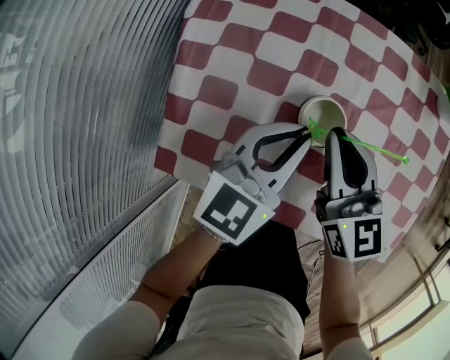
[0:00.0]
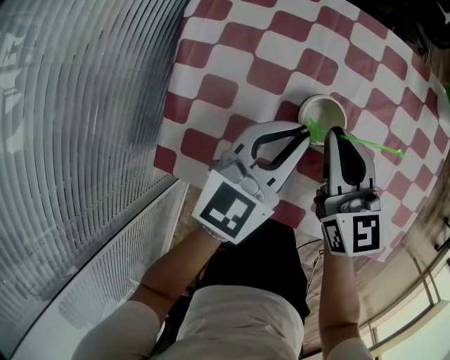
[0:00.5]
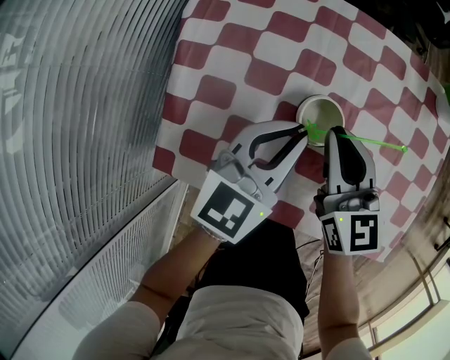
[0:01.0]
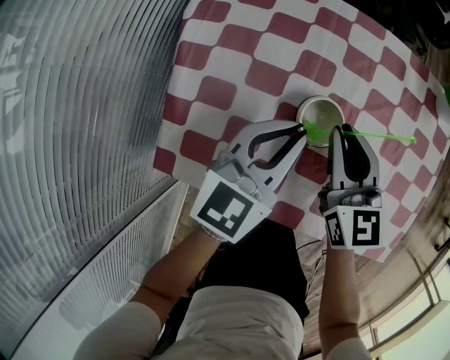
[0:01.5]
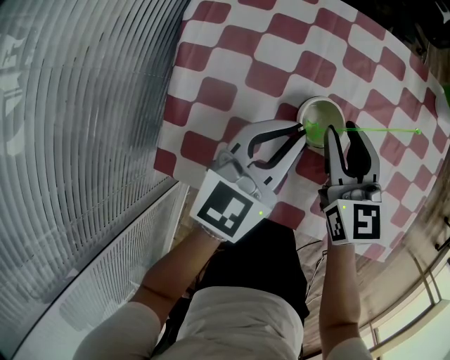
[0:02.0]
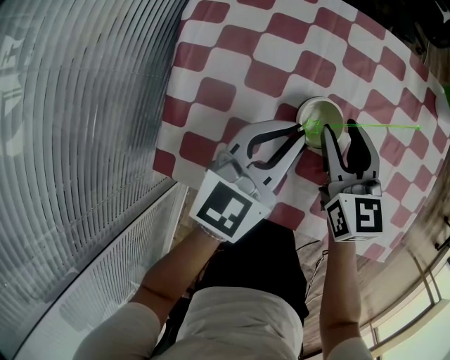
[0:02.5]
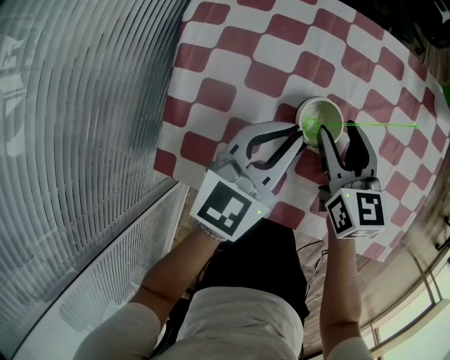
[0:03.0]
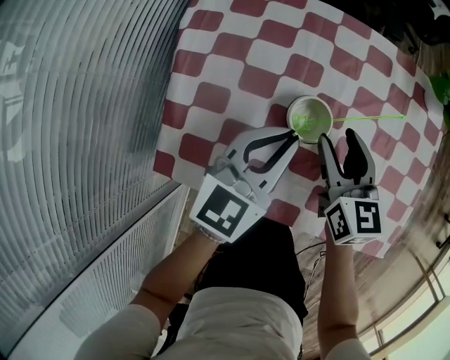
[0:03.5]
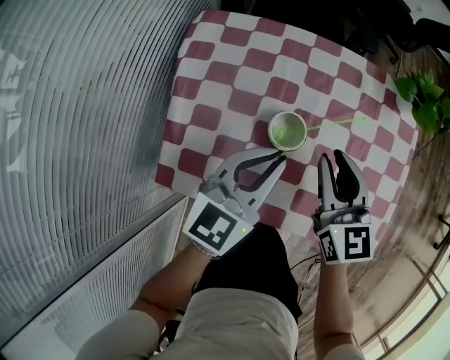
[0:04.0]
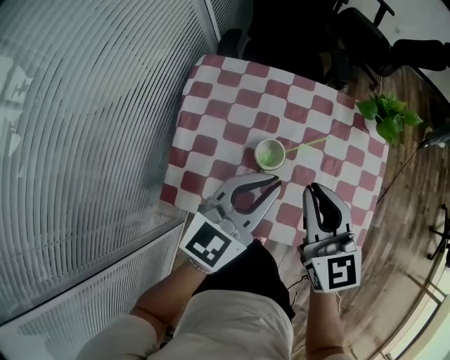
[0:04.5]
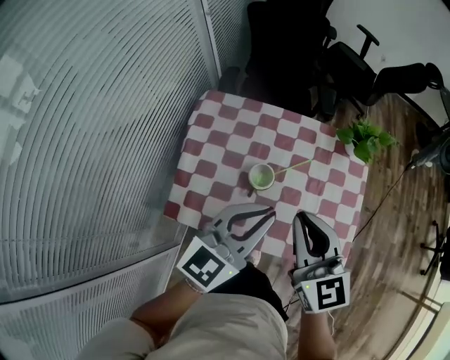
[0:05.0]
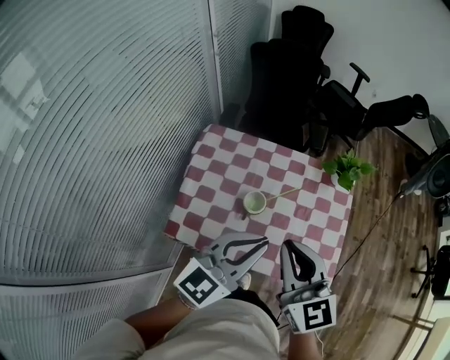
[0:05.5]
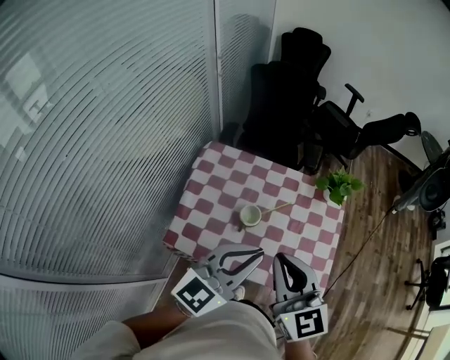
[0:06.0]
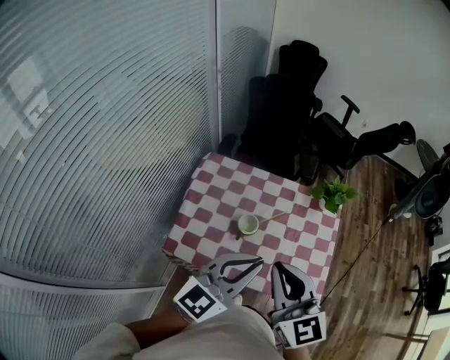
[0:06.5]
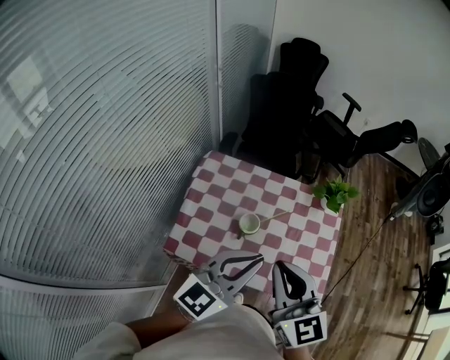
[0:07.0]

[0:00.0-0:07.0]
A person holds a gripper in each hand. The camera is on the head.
0:00.0 to 0:02.0: The right gripper opens up.
0:02.0 to 0:03.5: The right gripper opens up.
0:03.5 to 0:05.0: The left gripper is displaced upward by some 25 cm. Meanwhile the right gripper goes approximately 30 cm upward and backward, changes its angle by approximately 20 degrees, and closes up.
0:05.0 to 0:07.0: The two grippers go approximately 15 cm upward and backward.

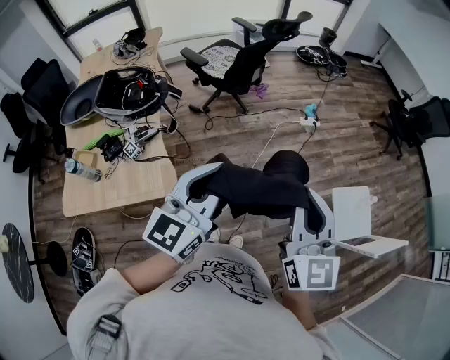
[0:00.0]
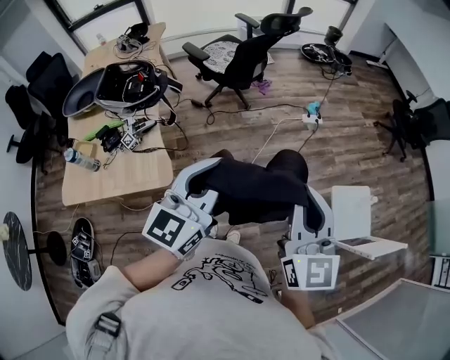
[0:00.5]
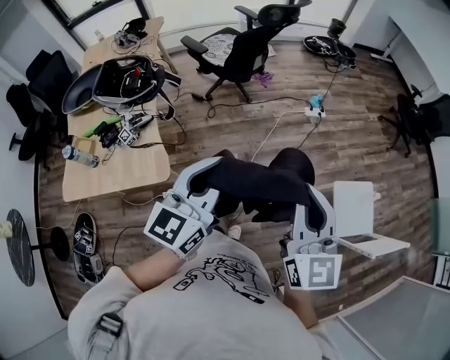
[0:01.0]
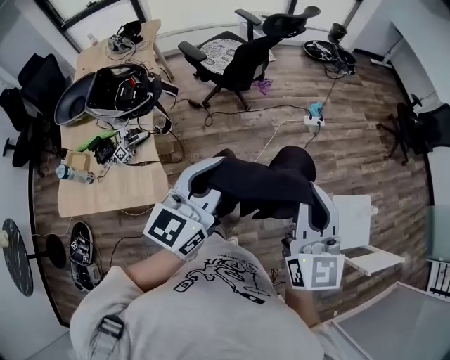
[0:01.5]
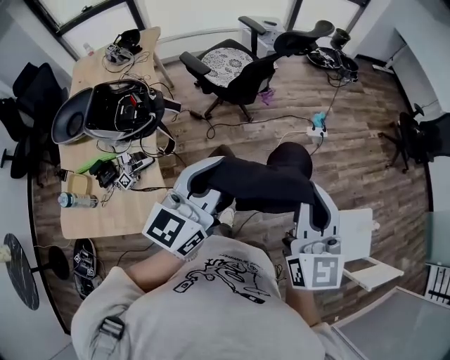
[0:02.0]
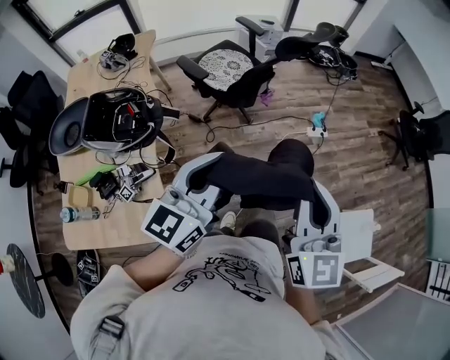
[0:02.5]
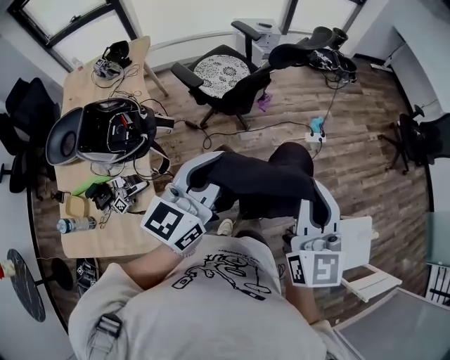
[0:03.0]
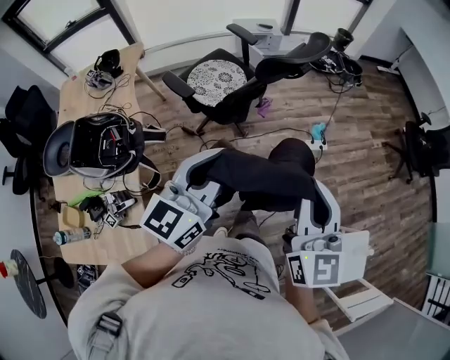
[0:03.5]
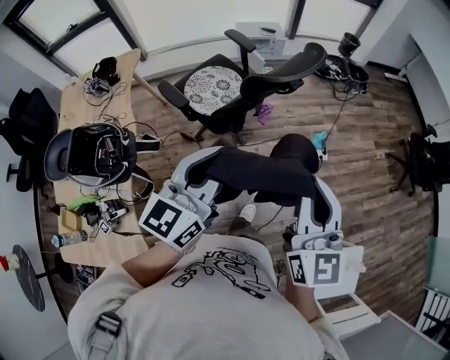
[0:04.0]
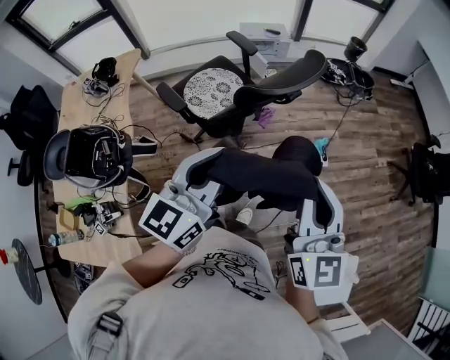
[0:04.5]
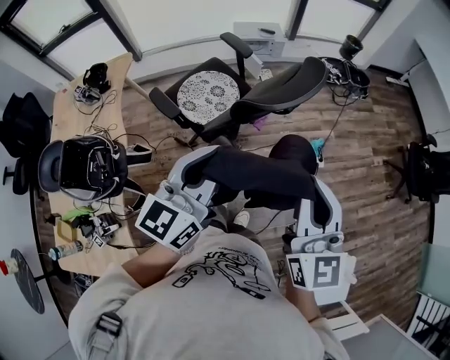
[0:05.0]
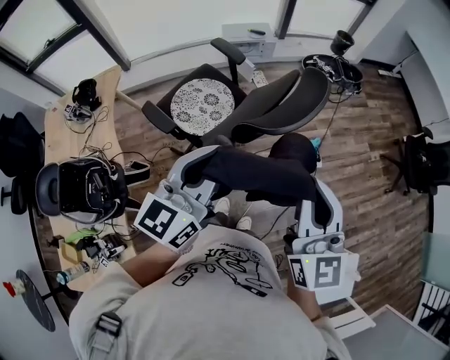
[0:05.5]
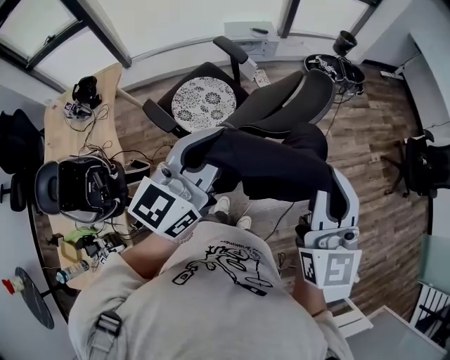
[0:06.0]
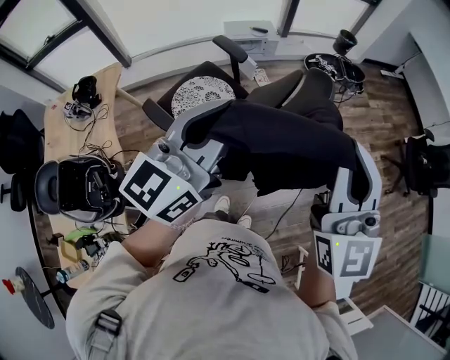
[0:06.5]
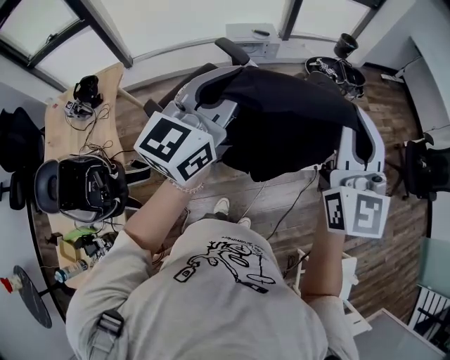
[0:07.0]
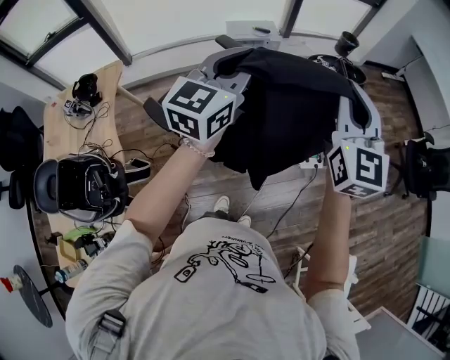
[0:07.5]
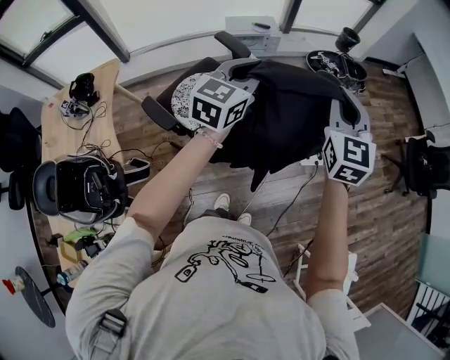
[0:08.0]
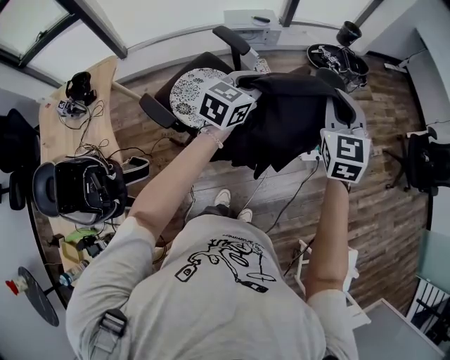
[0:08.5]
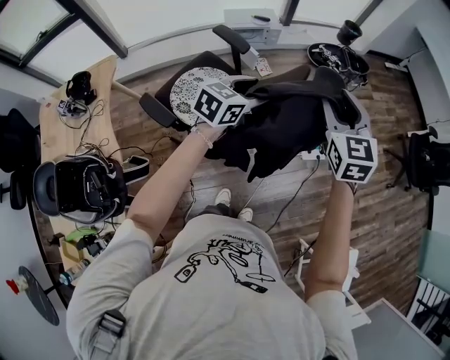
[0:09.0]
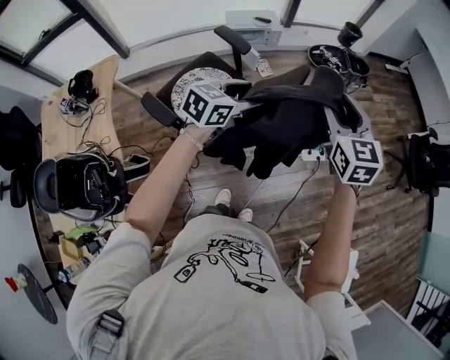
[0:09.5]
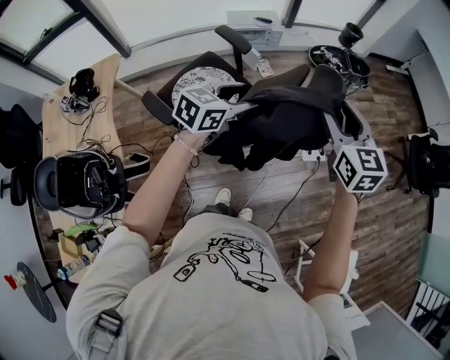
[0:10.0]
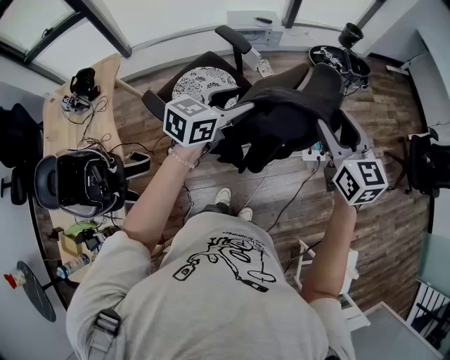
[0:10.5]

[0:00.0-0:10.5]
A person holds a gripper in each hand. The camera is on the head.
0:00.0 to 0:02.0: The grippers both shift forward by roughly 20 cm.
0:02.0 to 0:04.0: Both grippers travel together forward, roughly 30 cm.
0:04.0 to 0:06.5: The left gripper travels forward by roughly 25 cm. Meanwhile the right gripper heads forward and upward, covering some 25 cm.
0:06.5 to 0:08.5: The left gripper travels downward and forward by about 30 cm, and changes its angle by roughly 30 degrees; the right gripper travels forward and downward by some 25 cm, and changes its angle by approximately 30 degrees.
0:08.5 to 0:10.5: Both grippers move backward, about 10 cm. The left gripper opens its fingers, while the right gripper changes its angle by approximately 30 degrees, and opens.

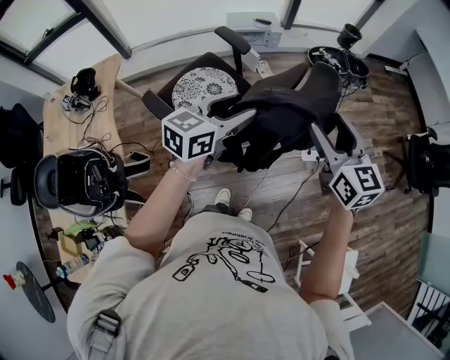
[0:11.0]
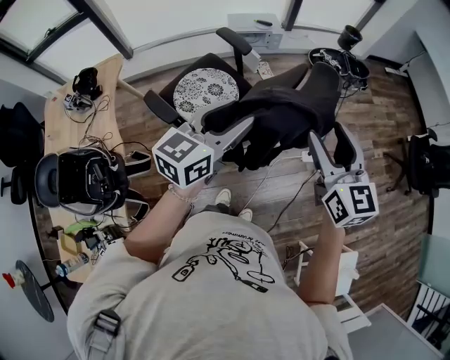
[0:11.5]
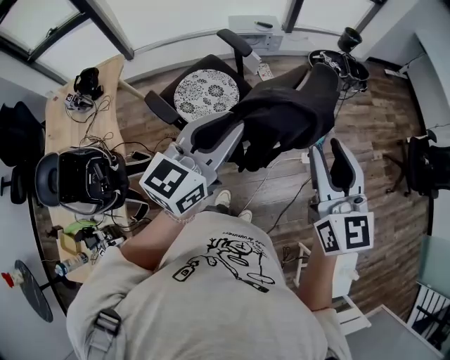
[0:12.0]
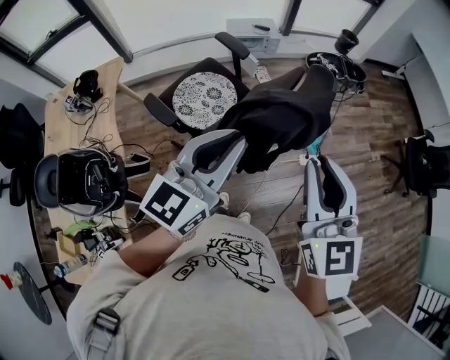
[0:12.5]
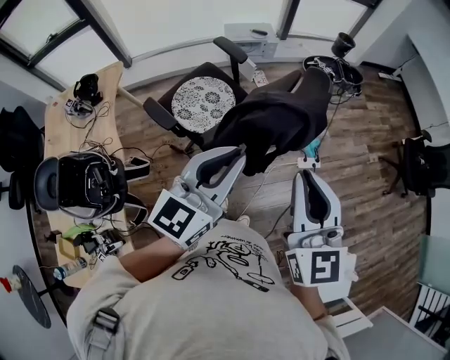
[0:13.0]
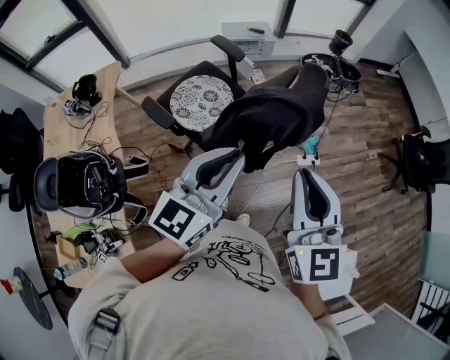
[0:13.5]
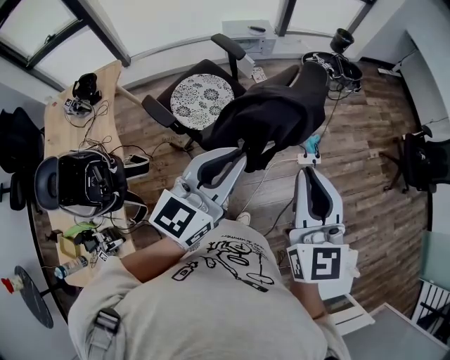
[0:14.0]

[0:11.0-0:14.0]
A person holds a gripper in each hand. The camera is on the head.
0:11.0 to 0:12.5: The two grippers go approximately 15 cm backward and upward. The right gripper closes up, while the left gripper closes.
0:12.5 to 0:14.0: There are only small adjustments of the grippers.

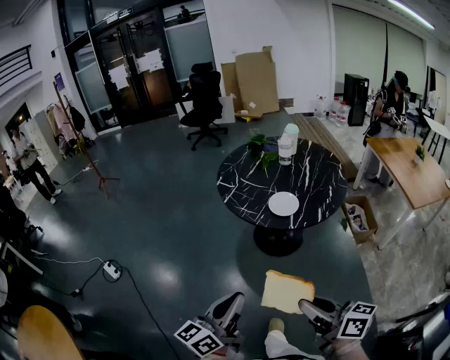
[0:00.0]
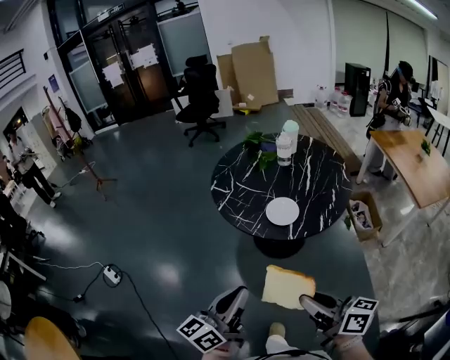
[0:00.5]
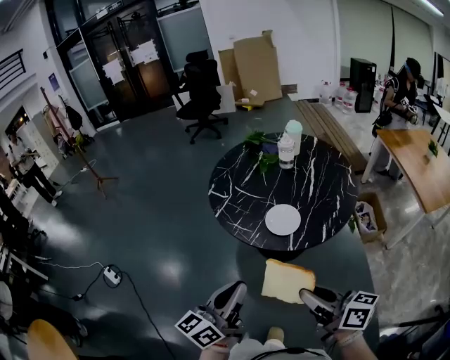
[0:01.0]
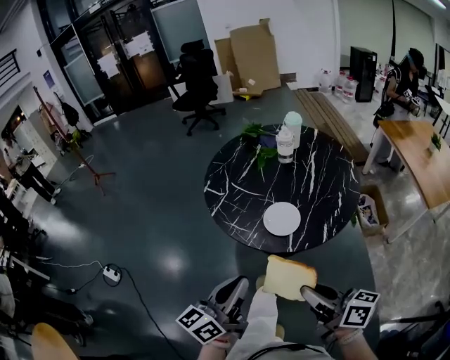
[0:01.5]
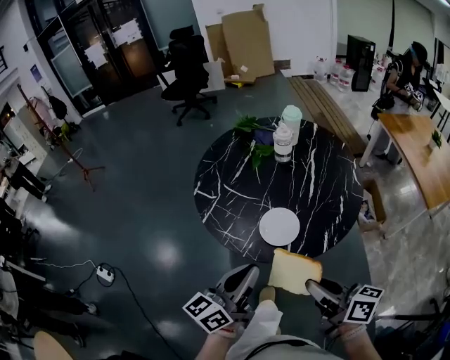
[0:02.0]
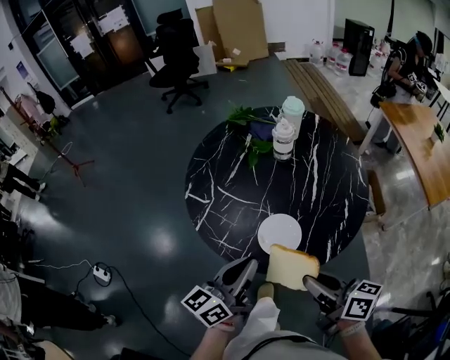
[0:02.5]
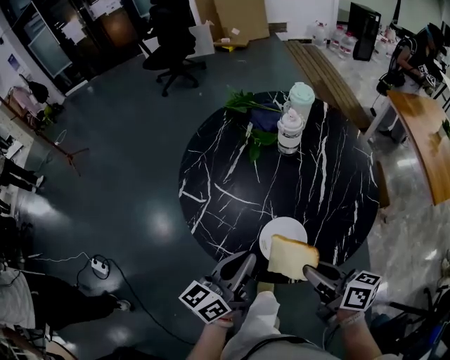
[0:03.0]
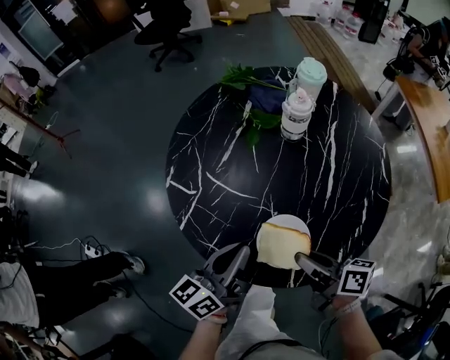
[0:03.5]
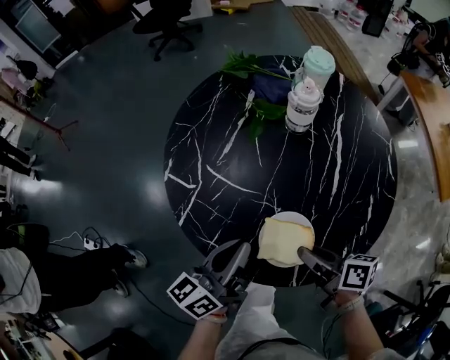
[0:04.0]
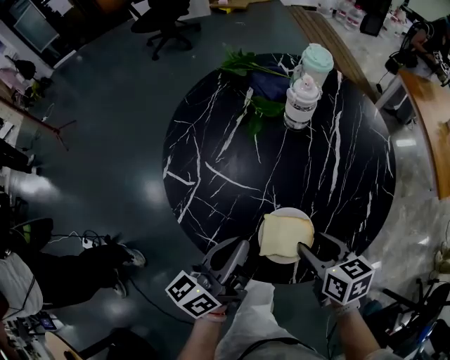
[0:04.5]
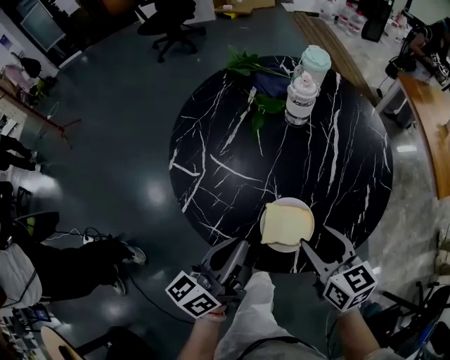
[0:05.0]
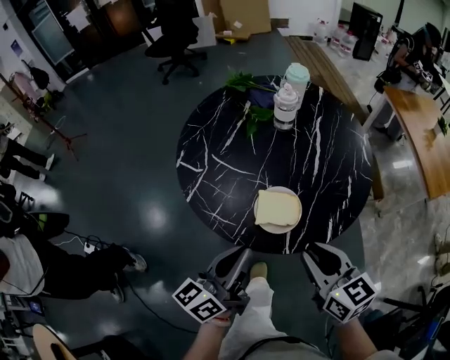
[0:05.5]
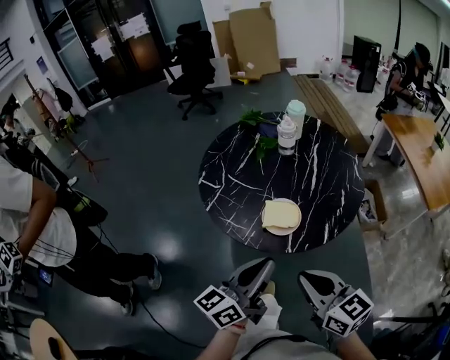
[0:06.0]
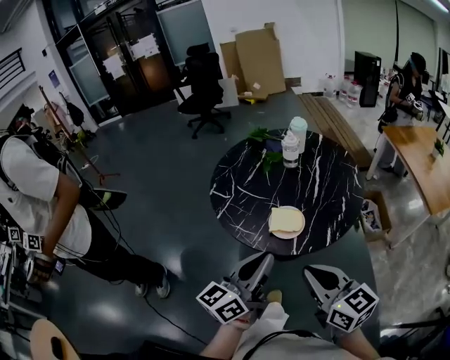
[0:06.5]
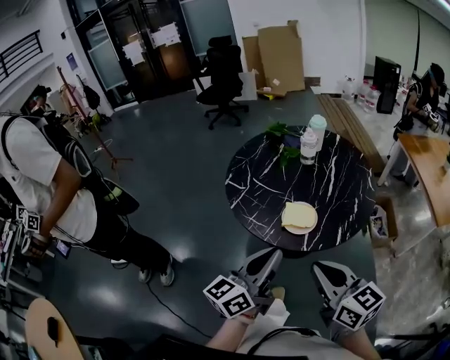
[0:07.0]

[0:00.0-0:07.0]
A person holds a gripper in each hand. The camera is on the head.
0:00.0 to 0:02.0: The left gripper travels forward and to the right by about 35 cm; the right gripper travels forward by approximately 30 cm.
0:02.0 to 0:03.5: The grippers both shift forward and downward by about 25 cm.
0:03.5 to 0:05.0: The right gripper changes its angle by roughly 40 degrees, and opens.
0:05.0 to 0:07.0: The two grippers go roughly 30 cm backward and upward. The right gripper rotates about 20 degrees, and closes its fingers.
